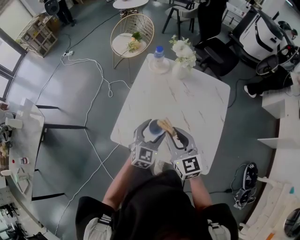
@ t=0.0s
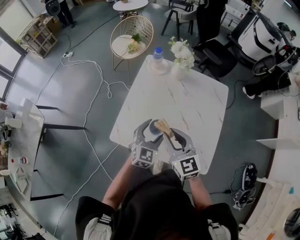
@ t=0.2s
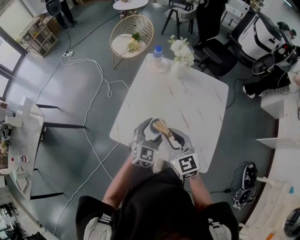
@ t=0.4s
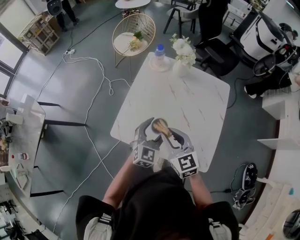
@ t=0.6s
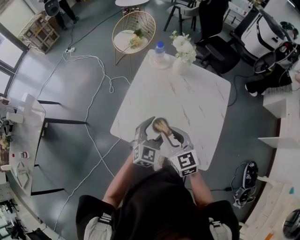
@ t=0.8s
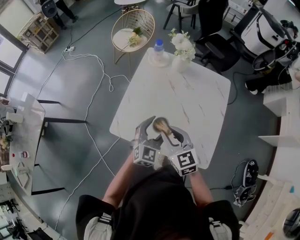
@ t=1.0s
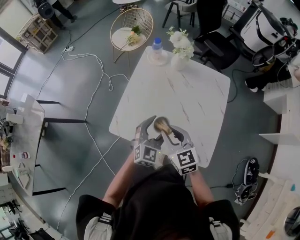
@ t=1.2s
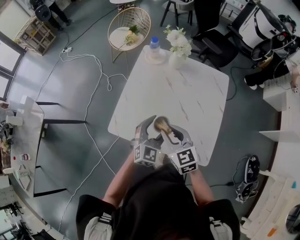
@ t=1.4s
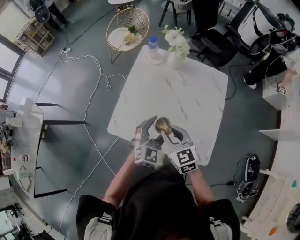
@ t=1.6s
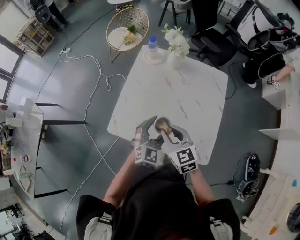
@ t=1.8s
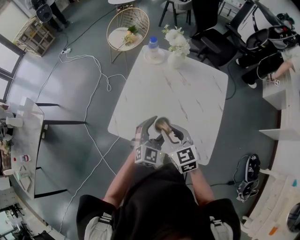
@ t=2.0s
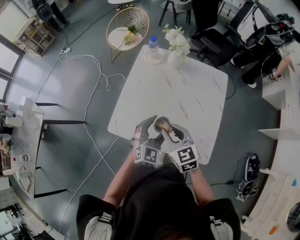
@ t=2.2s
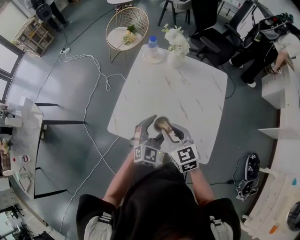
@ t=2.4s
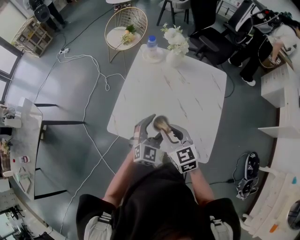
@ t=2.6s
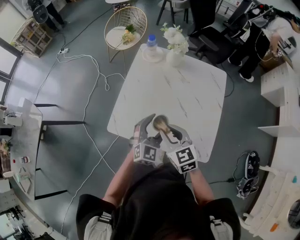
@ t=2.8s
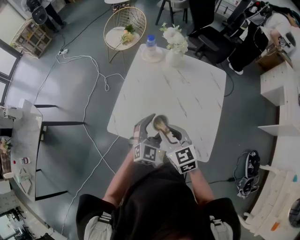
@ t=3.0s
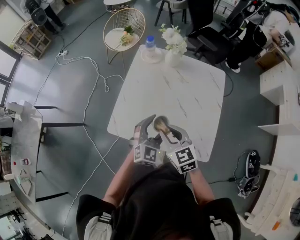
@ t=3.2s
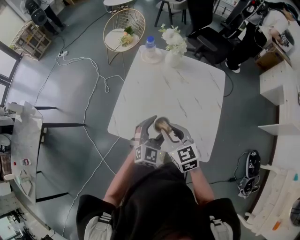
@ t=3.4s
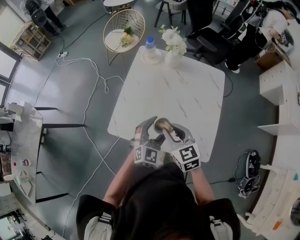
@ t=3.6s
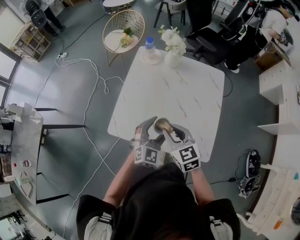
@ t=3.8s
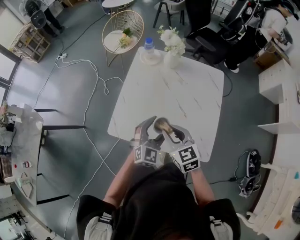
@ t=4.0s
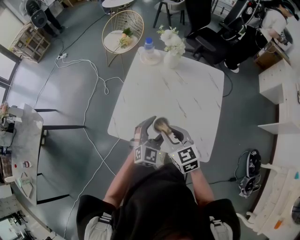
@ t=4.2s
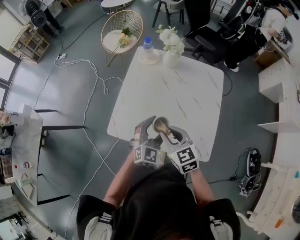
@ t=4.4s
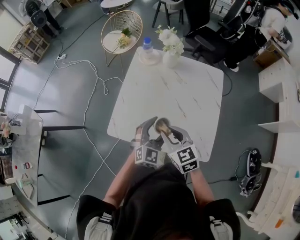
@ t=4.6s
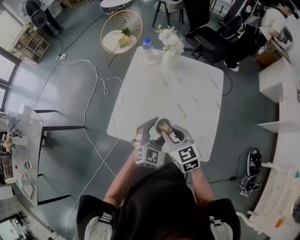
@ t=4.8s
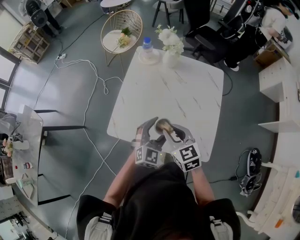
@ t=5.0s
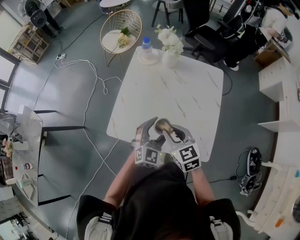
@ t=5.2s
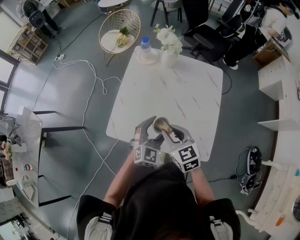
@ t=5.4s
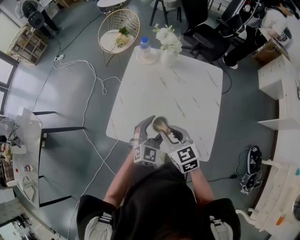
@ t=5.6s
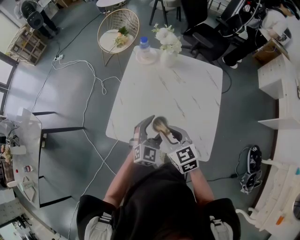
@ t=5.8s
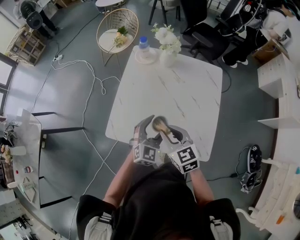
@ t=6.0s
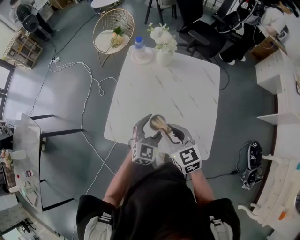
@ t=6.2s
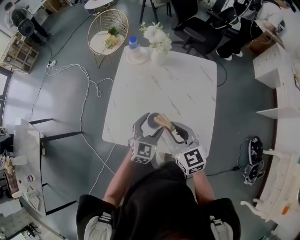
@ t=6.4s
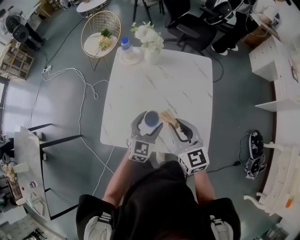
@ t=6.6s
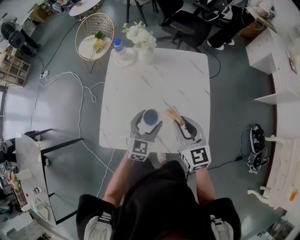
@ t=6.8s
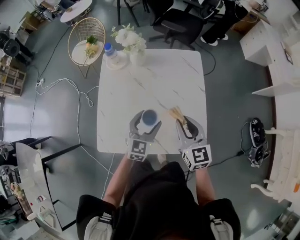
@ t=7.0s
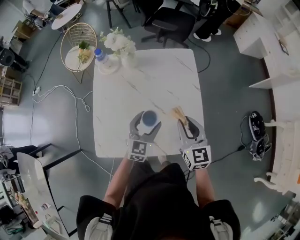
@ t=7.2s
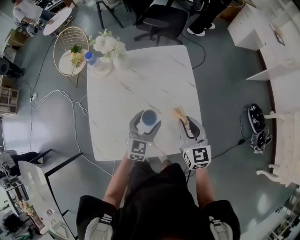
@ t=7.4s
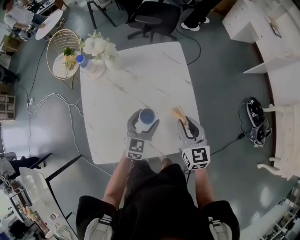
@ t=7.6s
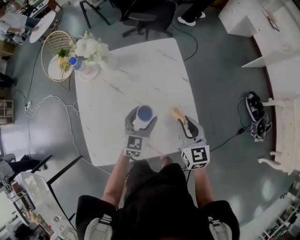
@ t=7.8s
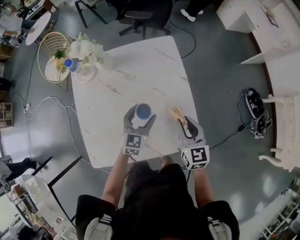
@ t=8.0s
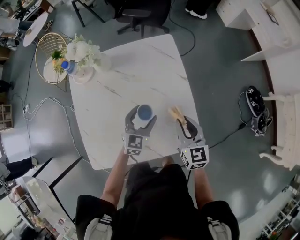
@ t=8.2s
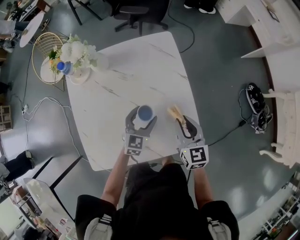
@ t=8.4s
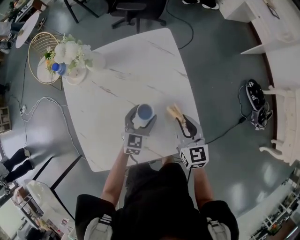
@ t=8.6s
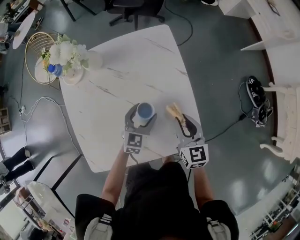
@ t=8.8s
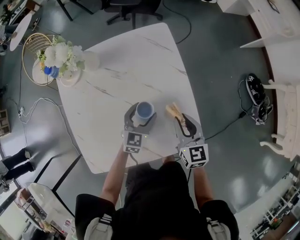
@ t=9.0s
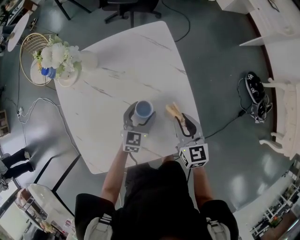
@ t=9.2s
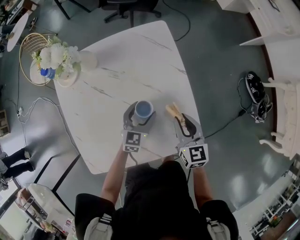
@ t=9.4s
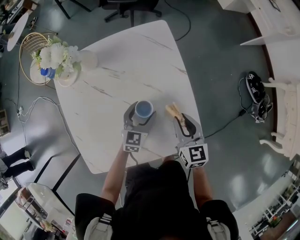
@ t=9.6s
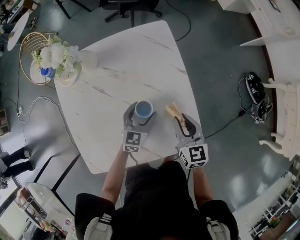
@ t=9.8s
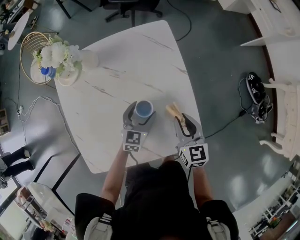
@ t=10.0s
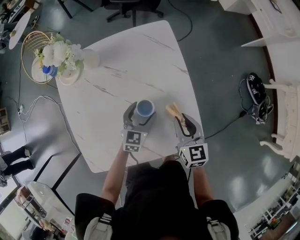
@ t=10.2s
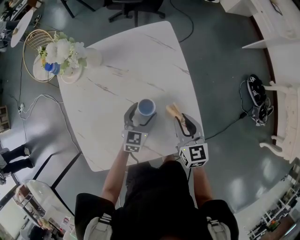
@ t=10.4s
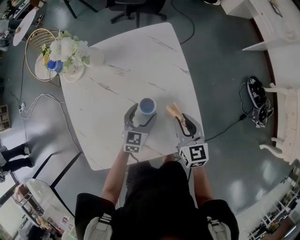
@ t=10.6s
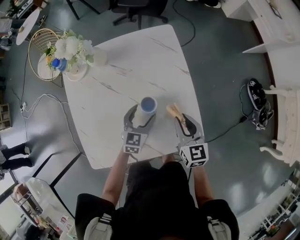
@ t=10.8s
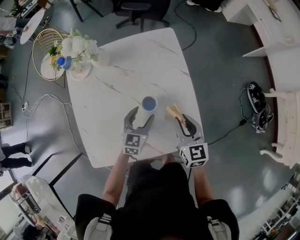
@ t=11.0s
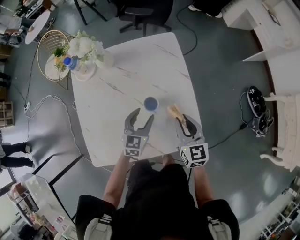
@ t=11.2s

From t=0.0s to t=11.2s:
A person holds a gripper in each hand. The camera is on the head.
From t=0.0s to t=1.6s: The left gripper changes place by about 5 cm, while the right gripper changes place by roughly 5 cm.
From t=1.6s to t=4.8s: The grippers move only a little.
From t=4.8s to t=6.4s: The right gripper moves about 5 cm.
From t=6.4s to t=8.0s: The left gripper changes place by roughly 15 cm, while the right gripper ends up about 25 cm from where it was, and turns by about 40 degrees.
From t=8.0s to t=9.6s: The two grippers go approximately 10 cm downward.
From t=9.6s to t=11.2s: Both grippers move upward, some 5 cm.

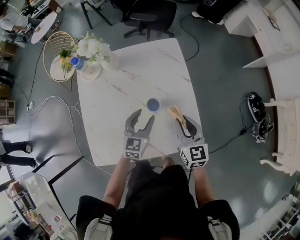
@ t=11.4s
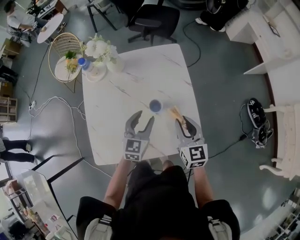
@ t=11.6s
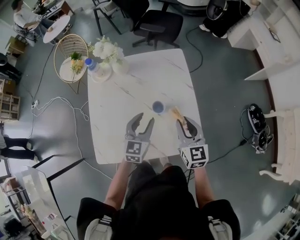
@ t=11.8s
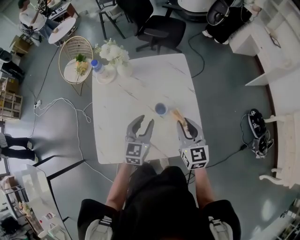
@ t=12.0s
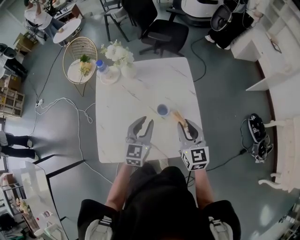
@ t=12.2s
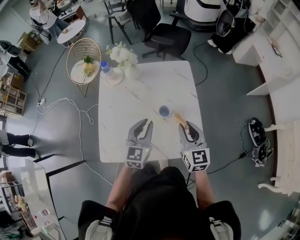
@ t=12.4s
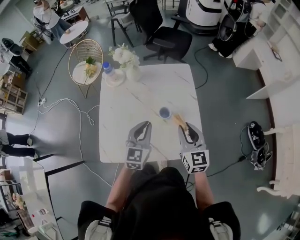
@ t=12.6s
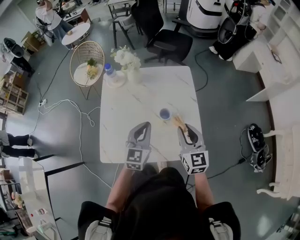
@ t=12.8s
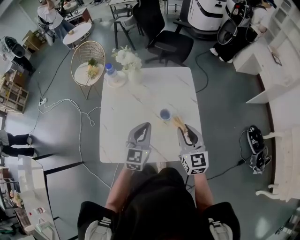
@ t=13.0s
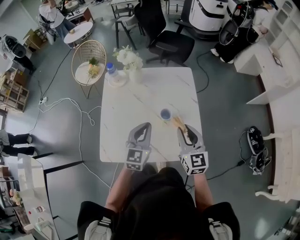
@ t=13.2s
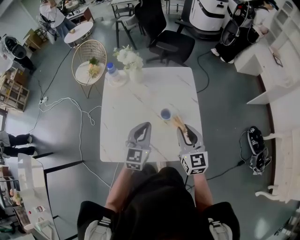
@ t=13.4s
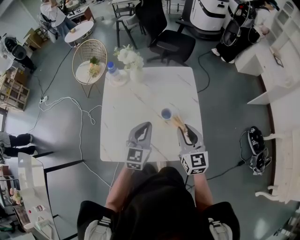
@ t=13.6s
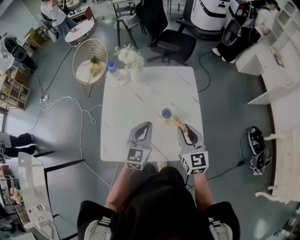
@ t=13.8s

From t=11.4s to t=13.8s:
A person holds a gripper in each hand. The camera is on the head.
From t=11.4s to t=12.6s: The right gripper shifts roughly 10 cm upward; the left gripper goes about 15 cm upward and backward, and closes.
From t=12.6s to t=13.8s: The grippers make only small movements.

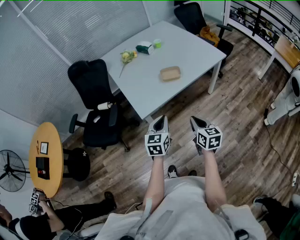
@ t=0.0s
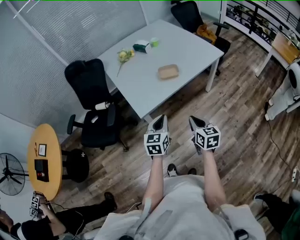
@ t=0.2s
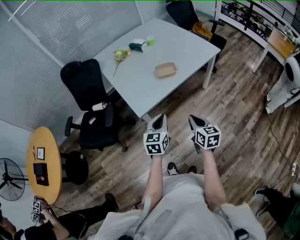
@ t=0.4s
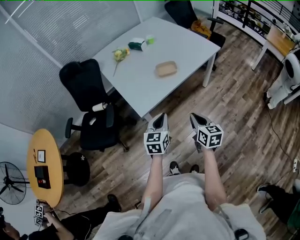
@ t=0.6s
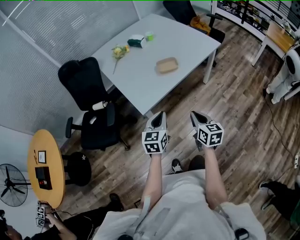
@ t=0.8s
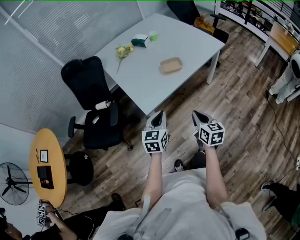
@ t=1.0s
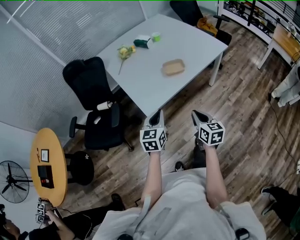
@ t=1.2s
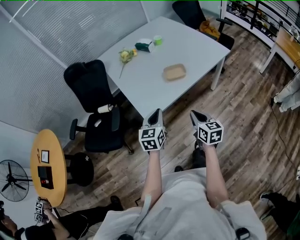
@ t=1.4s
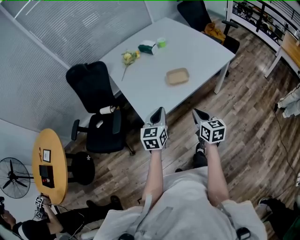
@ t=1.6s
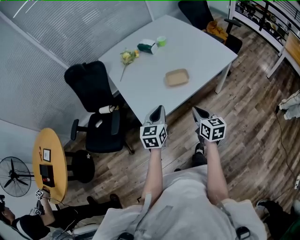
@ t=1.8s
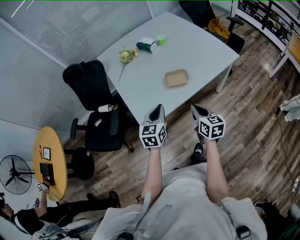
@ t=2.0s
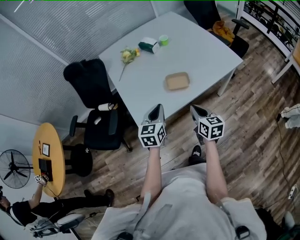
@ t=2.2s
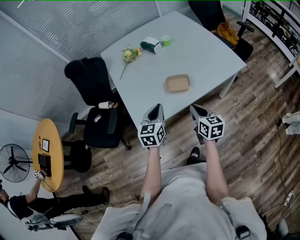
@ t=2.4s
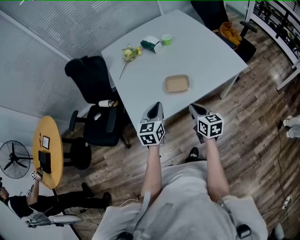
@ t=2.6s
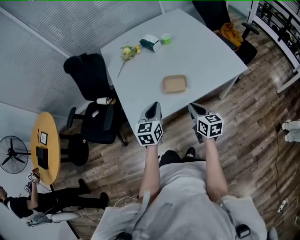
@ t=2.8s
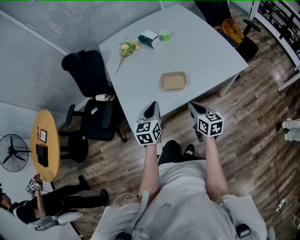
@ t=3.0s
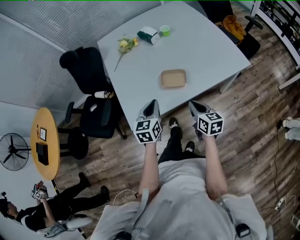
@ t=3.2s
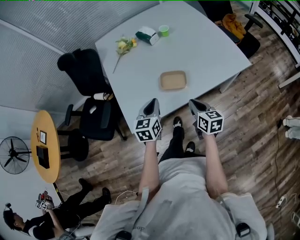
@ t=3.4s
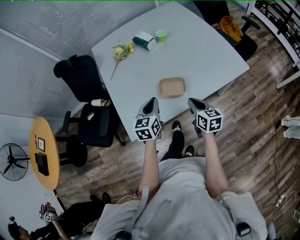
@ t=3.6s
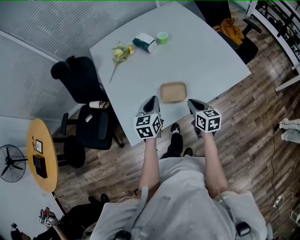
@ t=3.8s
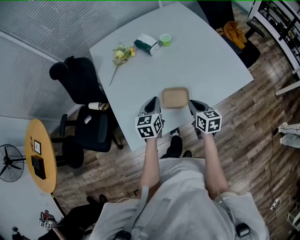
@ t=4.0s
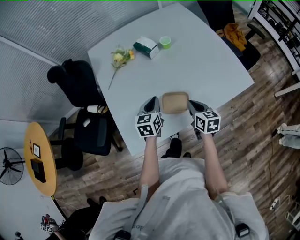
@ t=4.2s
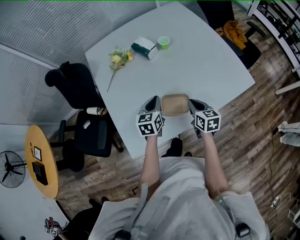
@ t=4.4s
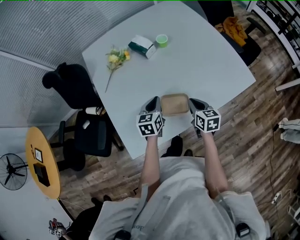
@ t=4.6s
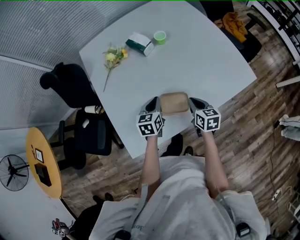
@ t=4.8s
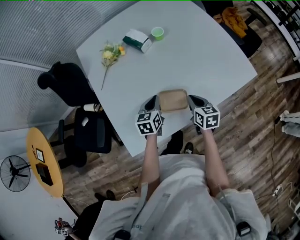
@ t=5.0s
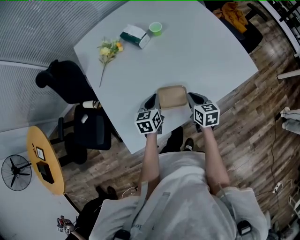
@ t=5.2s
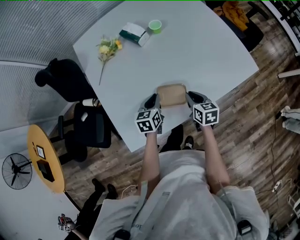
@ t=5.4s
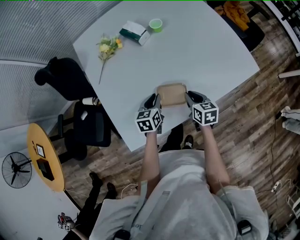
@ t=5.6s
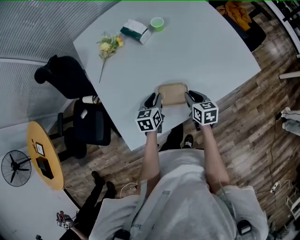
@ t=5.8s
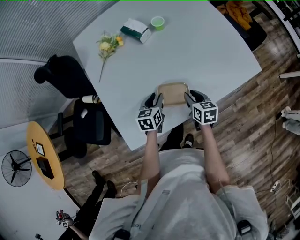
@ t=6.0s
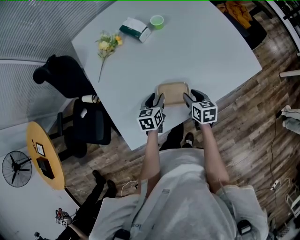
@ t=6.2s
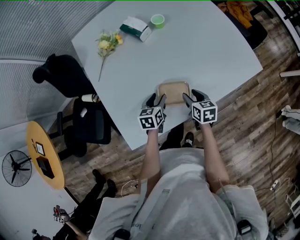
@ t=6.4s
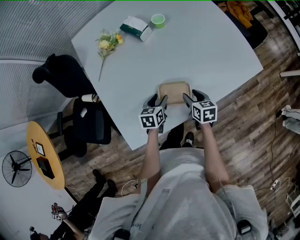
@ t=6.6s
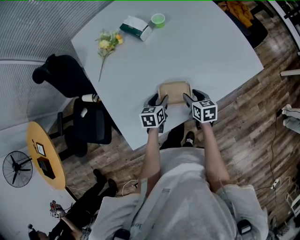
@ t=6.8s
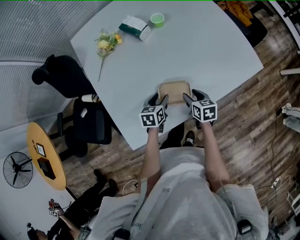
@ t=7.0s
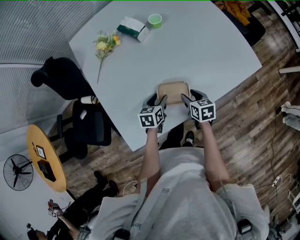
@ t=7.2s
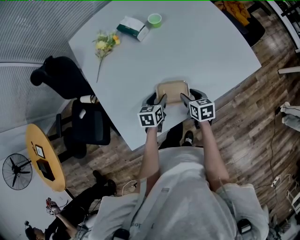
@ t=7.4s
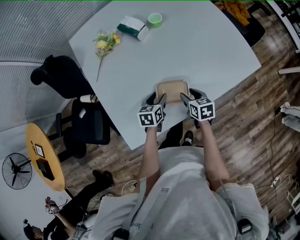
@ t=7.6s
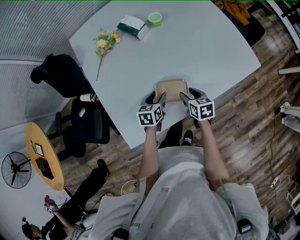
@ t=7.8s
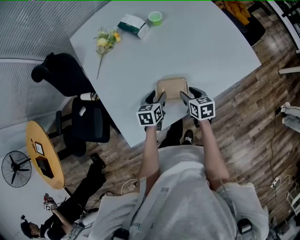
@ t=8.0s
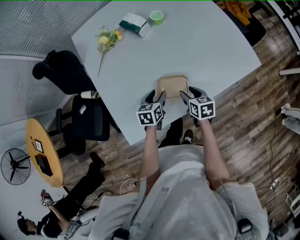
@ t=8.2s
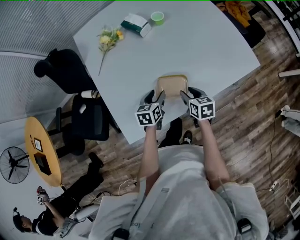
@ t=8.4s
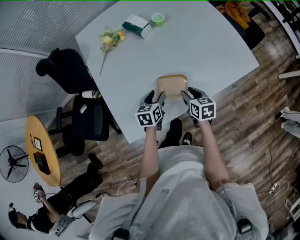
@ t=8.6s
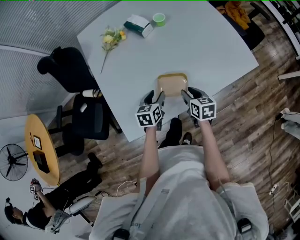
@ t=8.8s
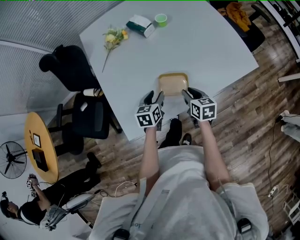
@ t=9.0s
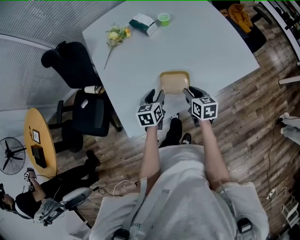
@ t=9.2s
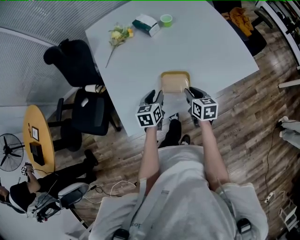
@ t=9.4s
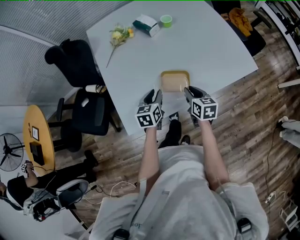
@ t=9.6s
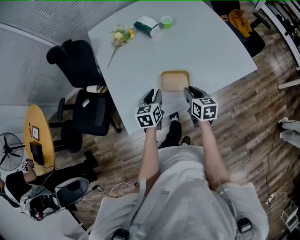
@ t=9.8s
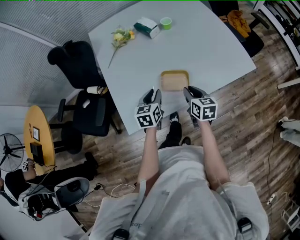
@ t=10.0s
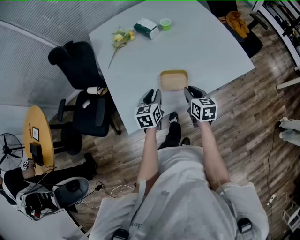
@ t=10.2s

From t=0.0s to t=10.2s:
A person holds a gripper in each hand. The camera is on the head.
From t=0.0s to t=1.4s: Both grippers move forward and to the left, some 10 cm.
From t=1.4s to t=3.0s: The two grippers go roughly 20 cm forward and to the right.
From t=3.0s to t=4.4s: Both grippers travel together forward, about 20 cm.
From t=4.4s to t=5.8s: Both grippers travel together downward, roughly 10 cm. The left gripper opens.
From t=5.8s to t=7.2s: The right gripper opens, while the left gripper opens its fingers.
From t=7.2s to t=8.8s: The right gripper changes place by about 5 cm. Meanwhile the left gripper ends up some 5 cm from where it was.
From t=8.8s to t=10.2s: The grippers both shift upward by approximately 5 cm. The left gripper closes its fingers.
